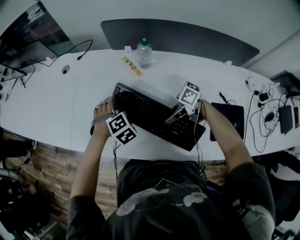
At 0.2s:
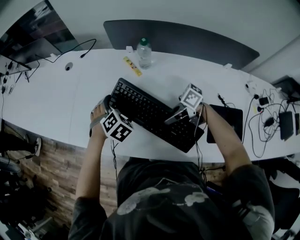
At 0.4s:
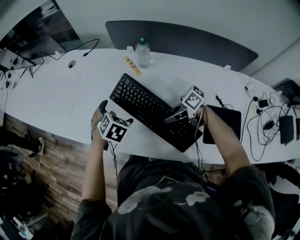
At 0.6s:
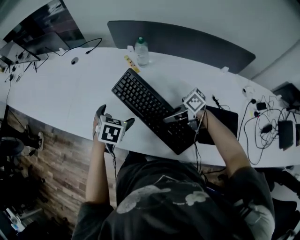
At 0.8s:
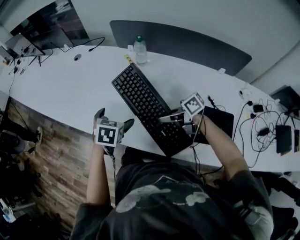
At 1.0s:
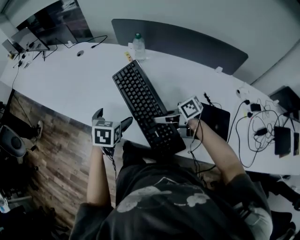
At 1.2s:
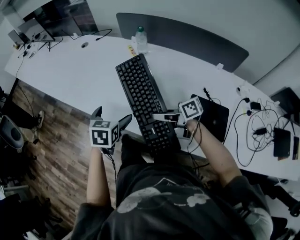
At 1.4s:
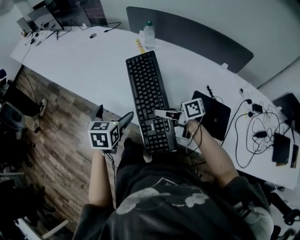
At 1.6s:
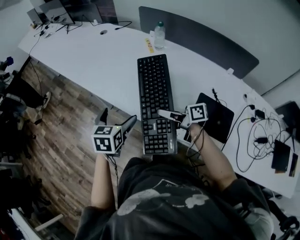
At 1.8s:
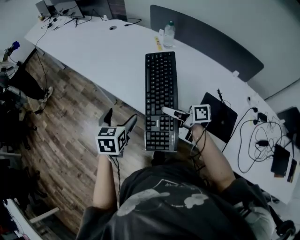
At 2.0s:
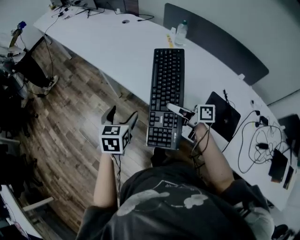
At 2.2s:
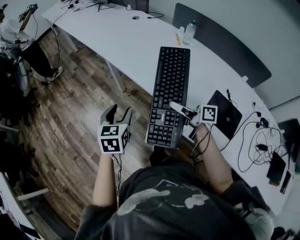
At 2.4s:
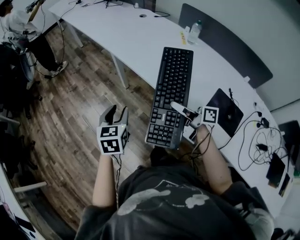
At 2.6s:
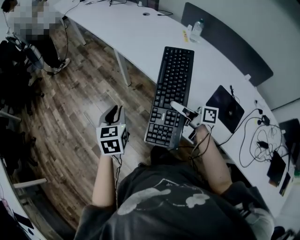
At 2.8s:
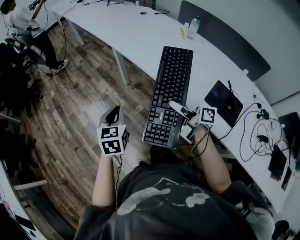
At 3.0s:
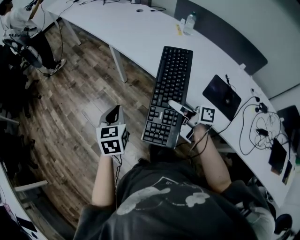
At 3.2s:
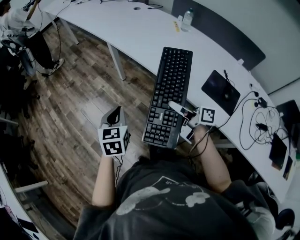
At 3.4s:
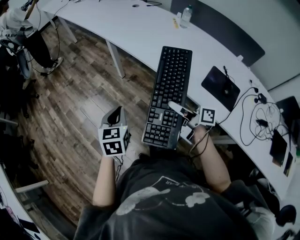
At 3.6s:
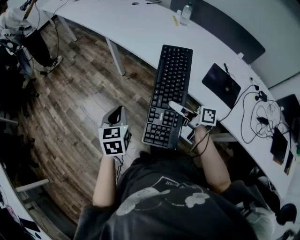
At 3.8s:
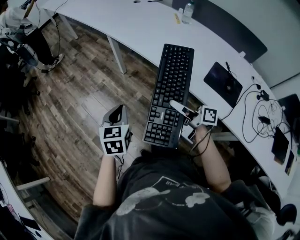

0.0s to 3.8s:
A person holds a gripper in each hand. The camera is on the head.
0.0s to 1.2s: The right gripper travels backward and upward by some 15 cm, and changes its angle by approximately 30 degrees. Meanwhile the left gripper shifts some 20 cm backward and to the left, and twists about 70 degrees counterclockwise, seen from behind.
1.2s to 2.6s: The left gripper is displaced to the left and backward by roughly 35 cm, swivels roughly 30 degrees, and closes its fingers; the right gripper shifts some 20 cm to the left and backward.
2.6s to 3.8s: The two grippers go some 10 cm backward.

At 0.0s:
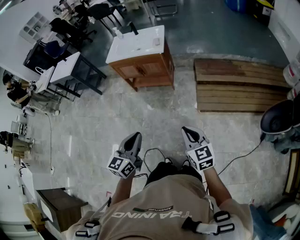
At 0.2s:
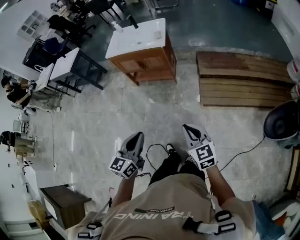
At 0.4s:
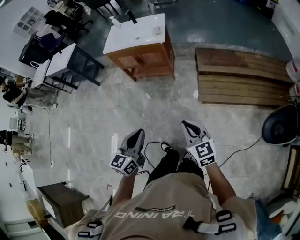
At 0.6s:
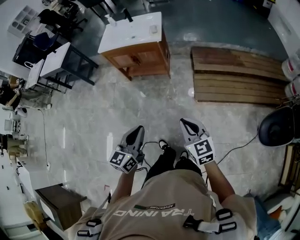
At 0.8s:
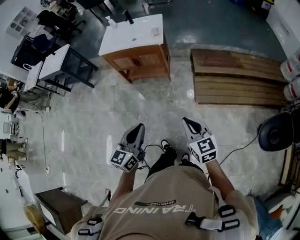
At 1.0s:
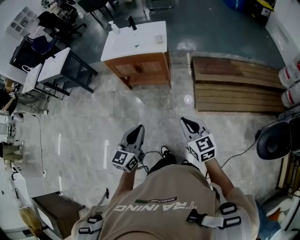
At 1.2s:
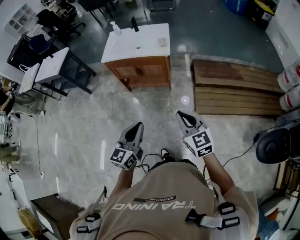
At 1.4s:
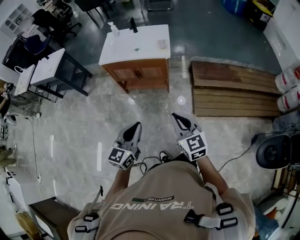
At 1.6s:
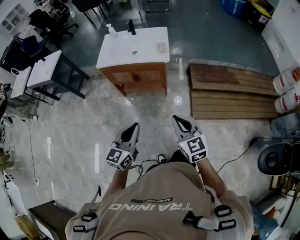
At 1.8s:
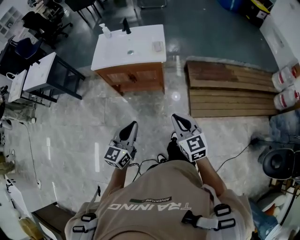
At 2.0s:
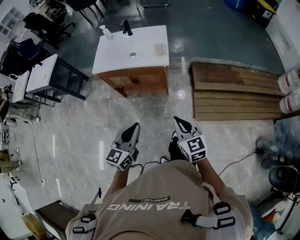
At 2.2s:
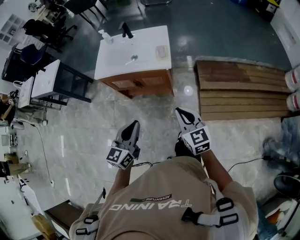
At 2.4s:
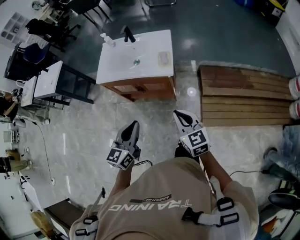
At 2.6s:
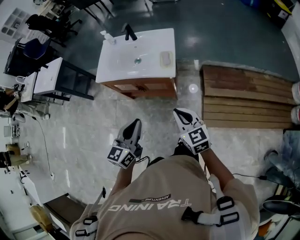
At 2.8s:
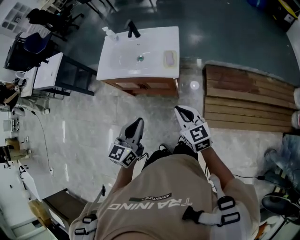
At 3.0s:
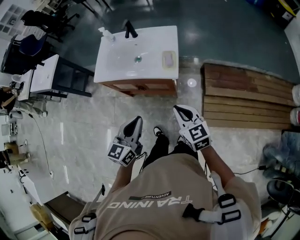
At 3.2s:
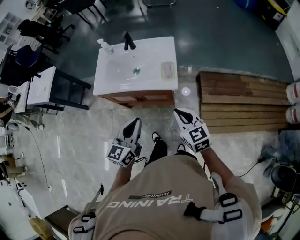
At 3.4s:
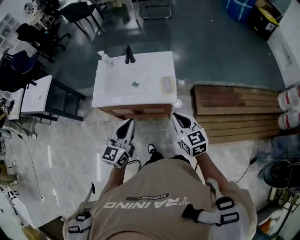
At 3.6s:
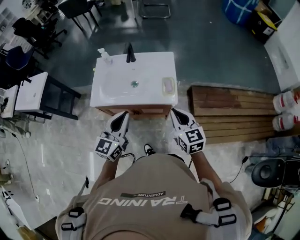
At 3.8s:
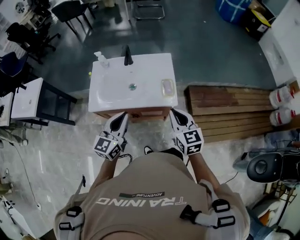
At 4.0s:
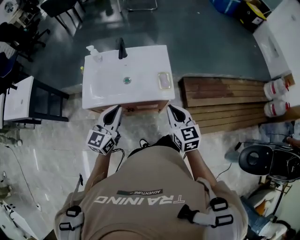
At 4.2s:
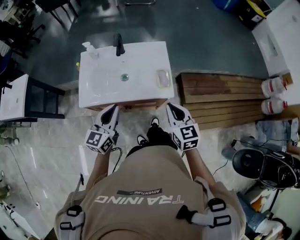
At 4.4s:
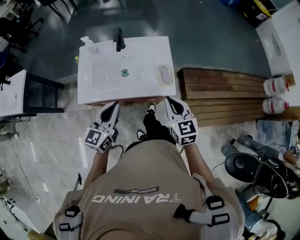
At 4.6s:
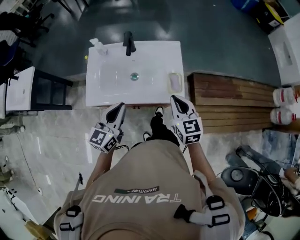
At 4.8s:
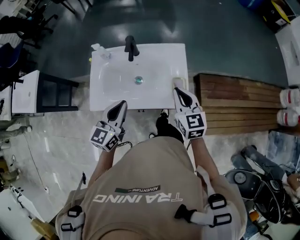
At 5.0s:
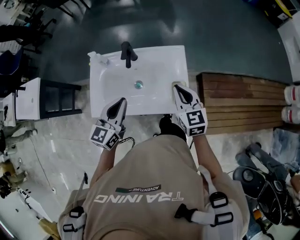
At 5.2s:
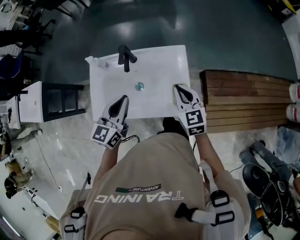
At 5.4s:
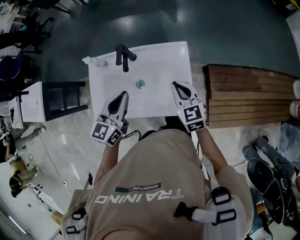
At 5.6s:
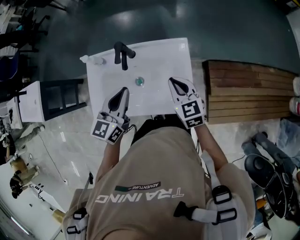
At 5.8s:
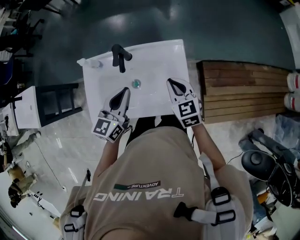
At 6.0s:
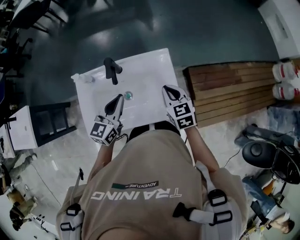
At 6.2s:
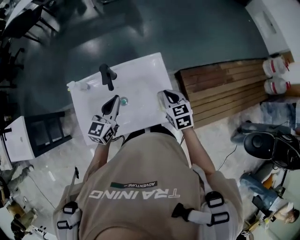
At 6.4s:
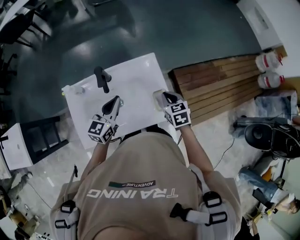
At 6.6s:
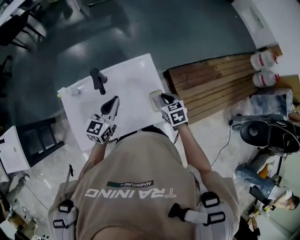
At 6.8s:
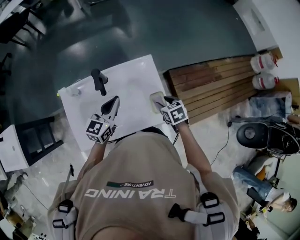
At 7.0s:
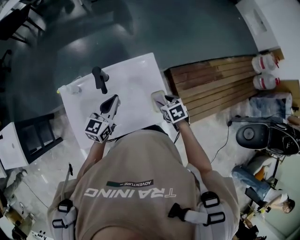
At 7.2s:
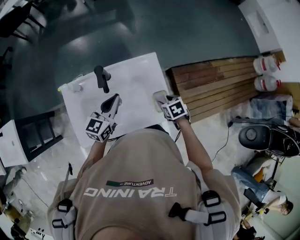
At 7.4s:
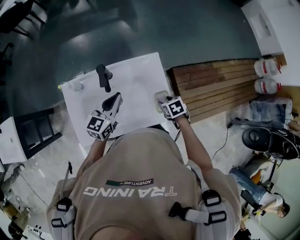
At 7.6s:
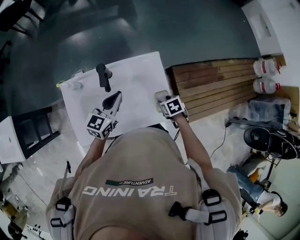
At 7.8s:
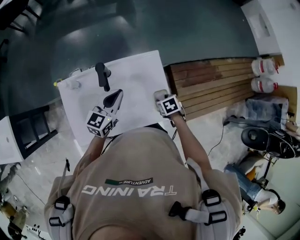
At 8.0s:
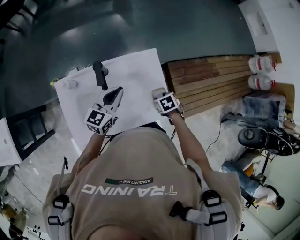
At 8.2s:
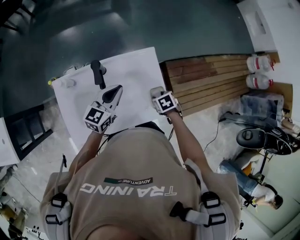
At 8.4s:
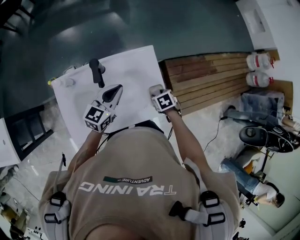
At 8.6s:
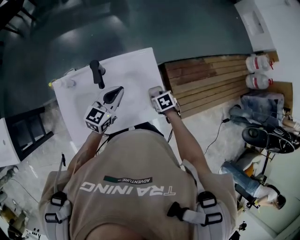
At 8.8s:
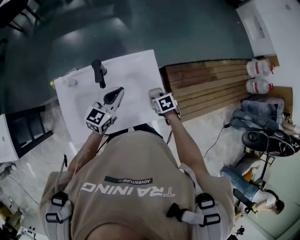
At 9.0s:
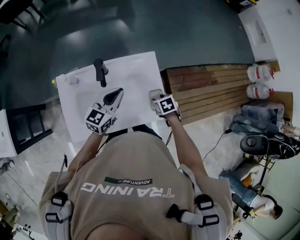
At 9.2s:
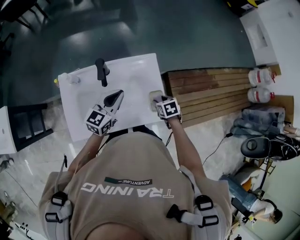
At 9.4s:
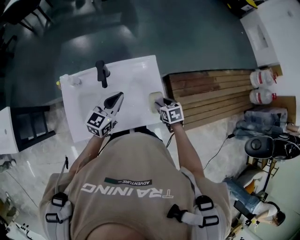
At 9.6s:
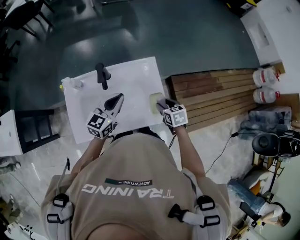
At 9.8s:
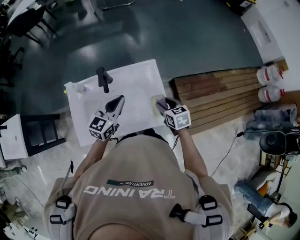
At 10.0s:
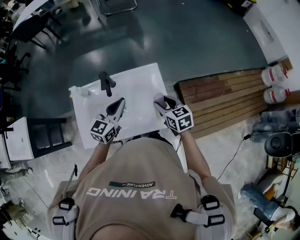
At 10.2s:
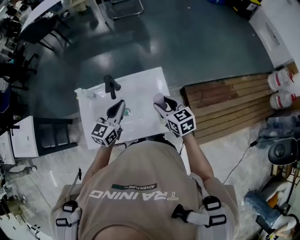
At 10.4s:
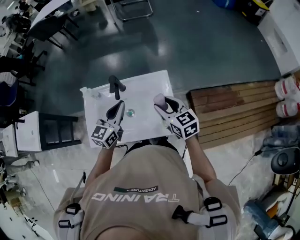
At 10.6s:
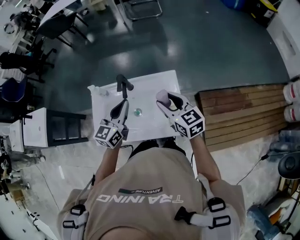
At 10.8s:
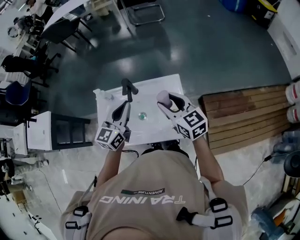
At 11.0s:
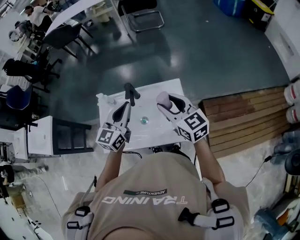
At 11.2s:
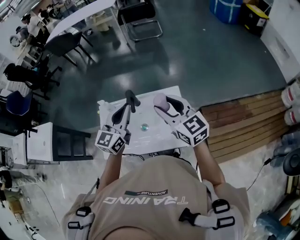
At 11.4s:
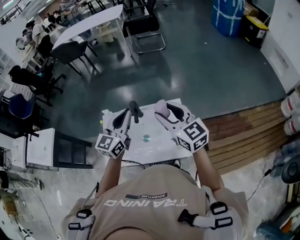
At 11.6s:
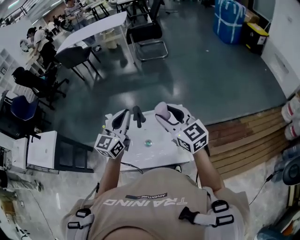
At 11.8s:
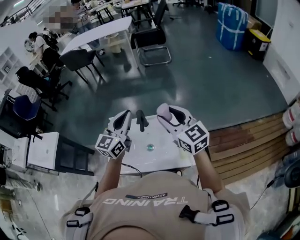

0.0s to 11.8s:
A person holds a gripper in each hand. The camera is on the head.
0.0s to 1.4s: The two grippers go approximately 25 cm forward and to the left.
1.4s to 3.0s: The grippers both shift forward by about 30 cm.
3.0s to 4.4s: Both grippers travel together forward and to the left, about 20 cm. The right gripper swivels approximately 20 degrees.
4.4s to 6.0s: The grippers both shift forward by some 20 cm.
6.0s to 7.4s: The left gripper shifts by approximately 5 cm; the right gripper travels downward and to the right by roughly 15 cm, angles its fingers downward, by about 30 degrees, and opens.
7.4s to 8.8s: There are only small adjustments of the grippers.
8.8s to 10.4s: The left gripper goes roughly 10 cm upward. Meanwhile the right gripper shifts about 20 cm upward, and tilts its fingers roughly 50 degrees upward.
10.4s to 11.8s: Both grippers travel together upward, approximately 15 cm. The right gripper turns by some 30 degrees.

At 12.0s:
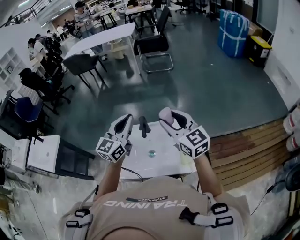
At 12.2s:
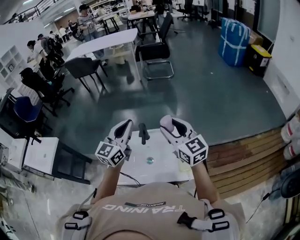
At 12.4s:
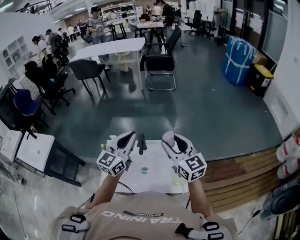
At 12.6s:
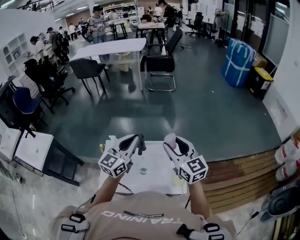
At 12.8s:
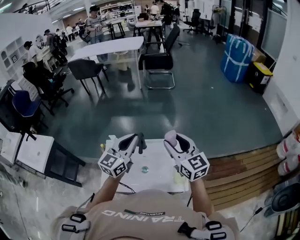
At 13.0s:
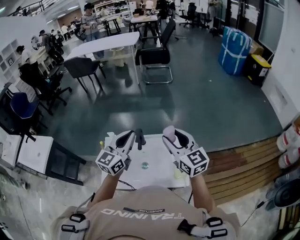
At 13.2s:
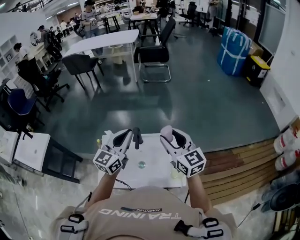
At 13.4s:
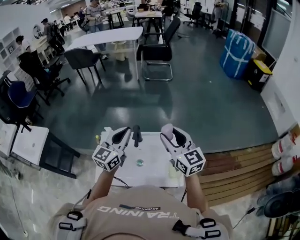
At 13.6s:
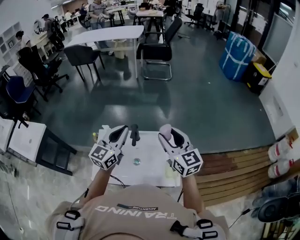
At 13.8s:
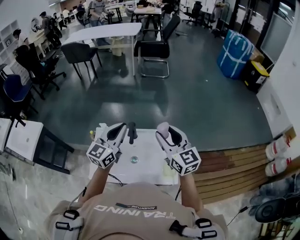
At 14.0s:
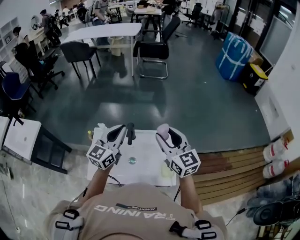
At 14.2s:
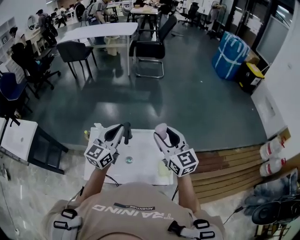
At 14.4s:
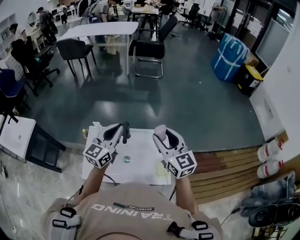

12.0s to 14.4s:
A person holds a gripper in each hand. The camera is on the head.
12.0s to 14.4s: The grippers move only a little.

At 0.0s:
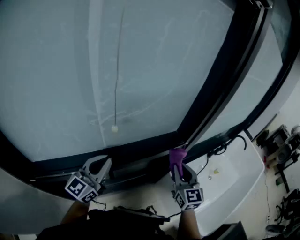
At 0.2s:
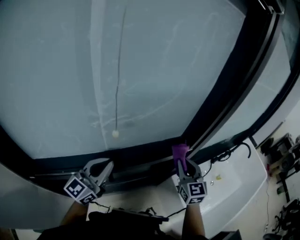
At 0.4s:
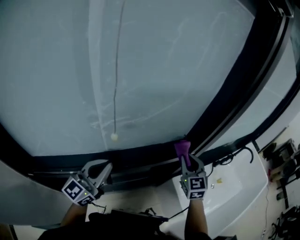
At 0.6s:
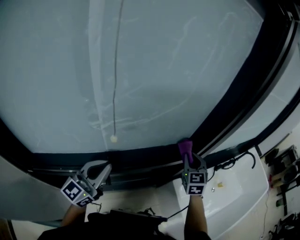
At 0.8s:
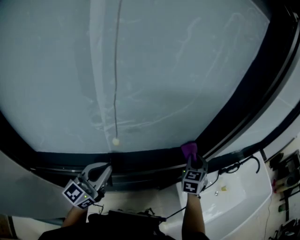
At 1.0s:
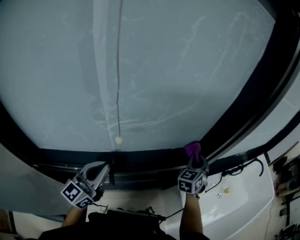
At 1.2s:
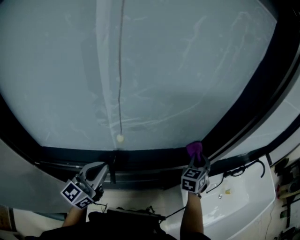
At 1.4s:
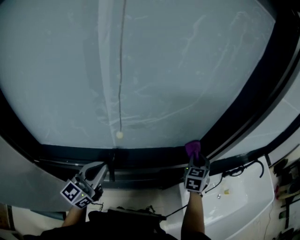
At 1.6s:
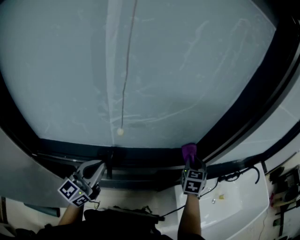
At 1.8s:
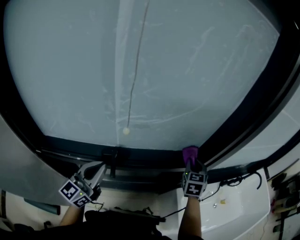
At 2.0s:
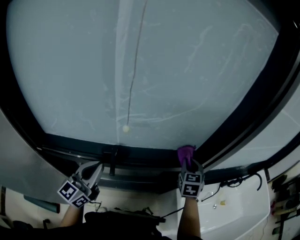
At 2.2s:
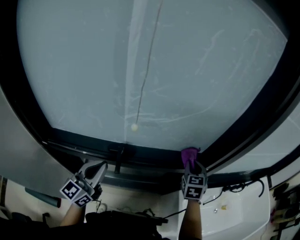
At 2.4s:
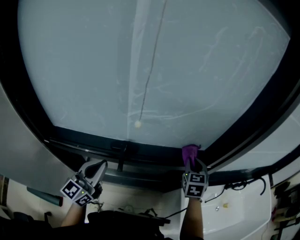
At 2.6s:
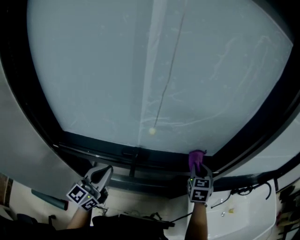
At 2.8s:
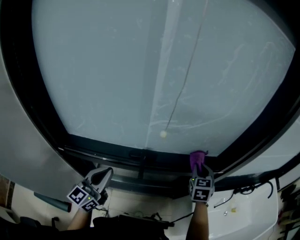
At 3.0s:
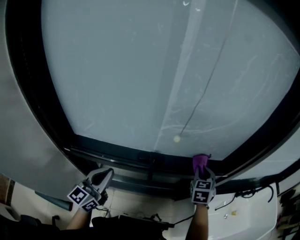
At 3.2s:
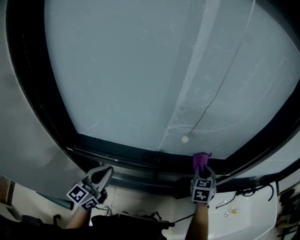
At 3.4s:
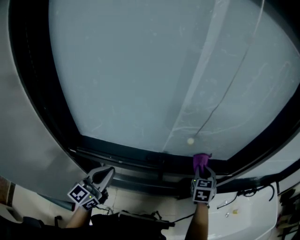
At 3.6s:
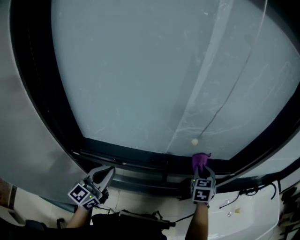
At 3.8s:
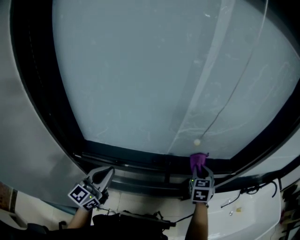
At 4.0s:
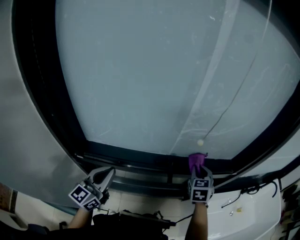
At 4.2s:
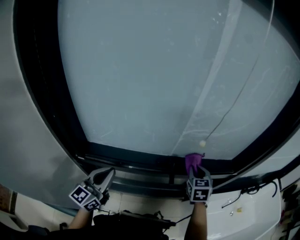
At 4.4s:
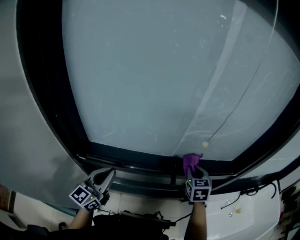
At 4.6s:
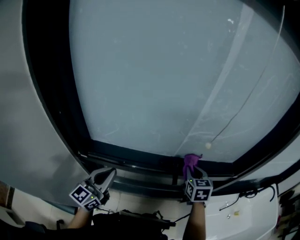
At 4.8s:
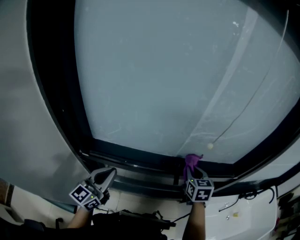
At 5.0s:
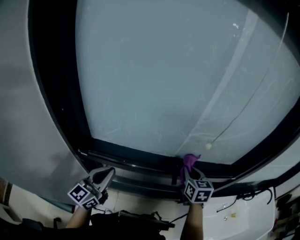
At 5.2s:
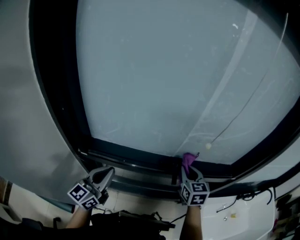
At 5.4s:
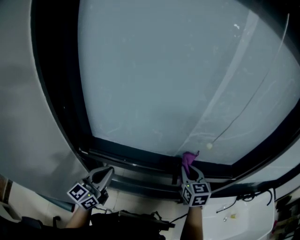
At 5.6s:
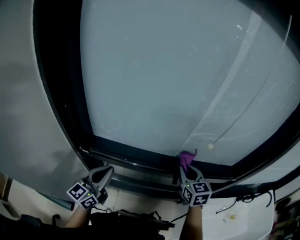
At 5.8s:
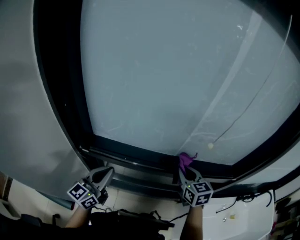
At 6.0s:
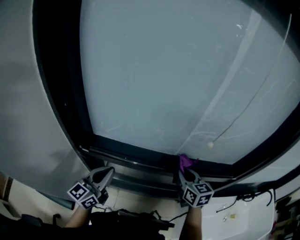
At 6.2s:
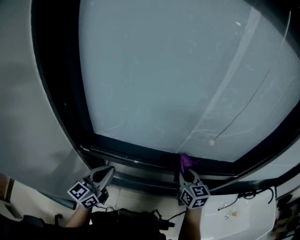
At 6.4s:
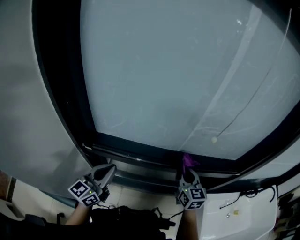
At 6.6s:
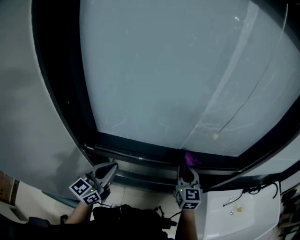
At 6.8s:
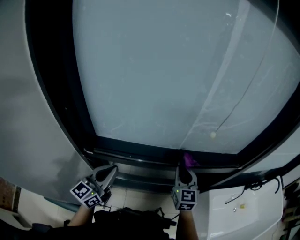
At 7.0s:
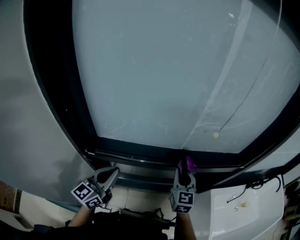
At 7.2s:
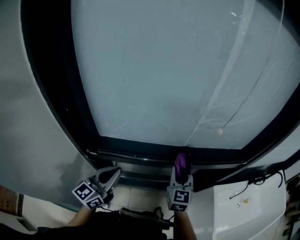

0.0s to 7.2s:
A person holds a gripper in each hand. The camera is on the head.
0.0s to 1.4s: The right gripper goes some 15 cm forward, and changes its angle by approximately 30 degrees.
1.4s to 2.8s: The left gripper heads backward and to the left, covering some 10 cm, while the right gripper heads to the left, covering roughly 10 cm.
2.8s to 4.4s: The two grippers go approximately 15 cm to the left.
4.4s to 5.8s: The right gripper heads to the left, covering some 5 cm, and turns by approximately 20 degrees.
5.8s to 7.2s: The right gripper shifts by about 5 cm, and rotates some 20 degrees.
